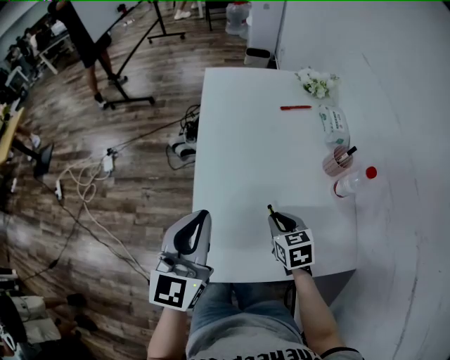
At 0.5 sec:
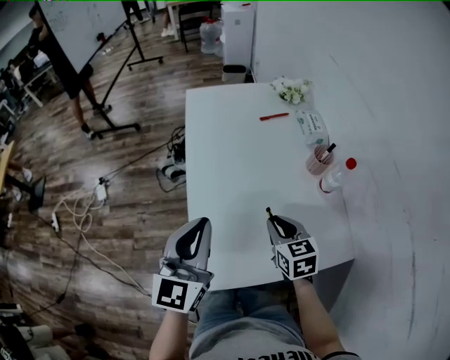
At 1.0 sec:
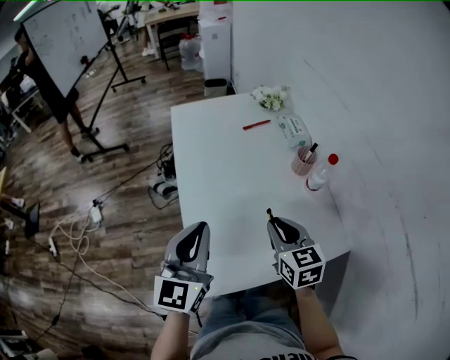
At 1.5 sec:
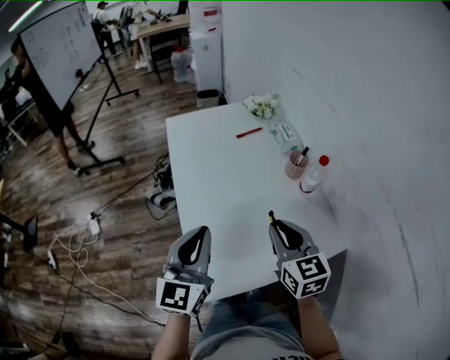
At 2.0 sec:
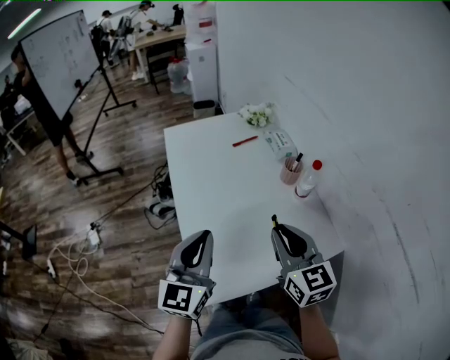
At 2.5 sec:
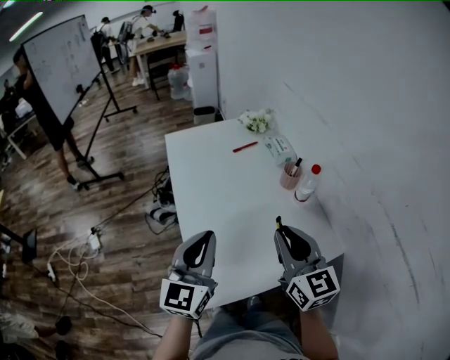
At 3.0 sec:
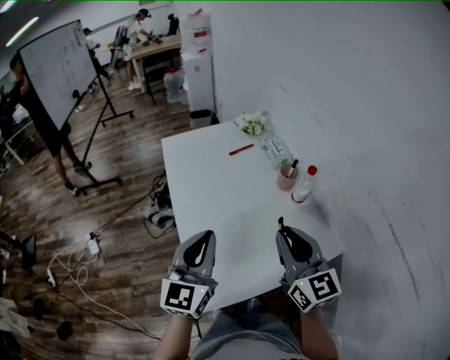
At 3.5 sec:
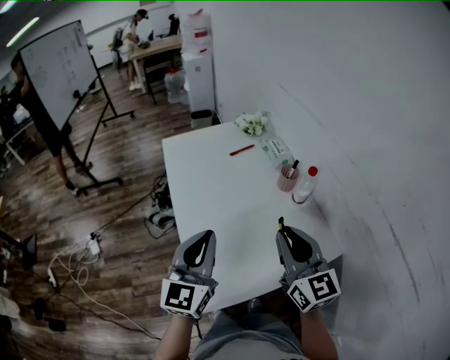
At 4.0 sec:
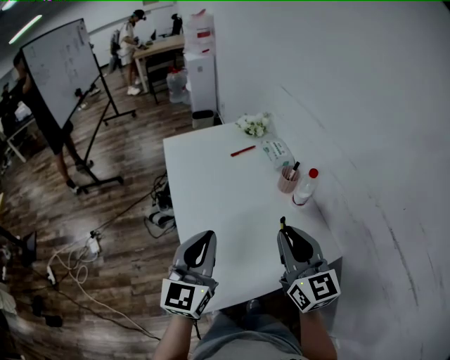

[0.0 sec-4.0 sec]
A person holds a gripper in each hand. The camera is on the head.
0.0 sec to 2.0 sec: The right gripper goes some 20 cm upward, and points its fingers some 40 degrees further upward.
2.0 sec to 4.0 sec: The grippers make only small movements.

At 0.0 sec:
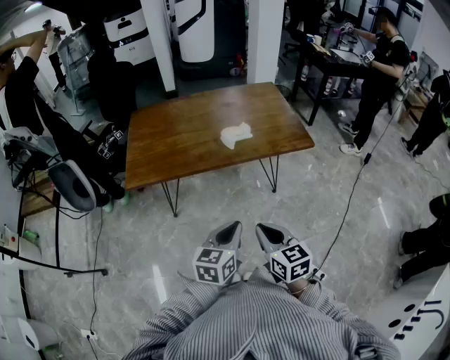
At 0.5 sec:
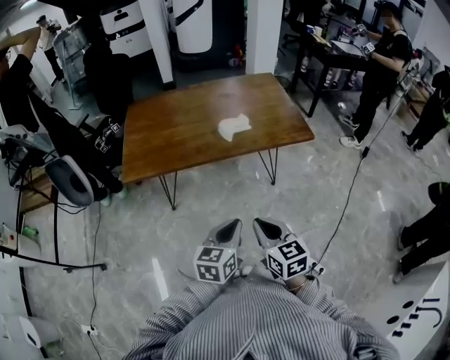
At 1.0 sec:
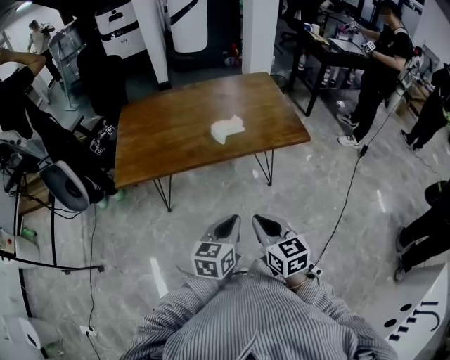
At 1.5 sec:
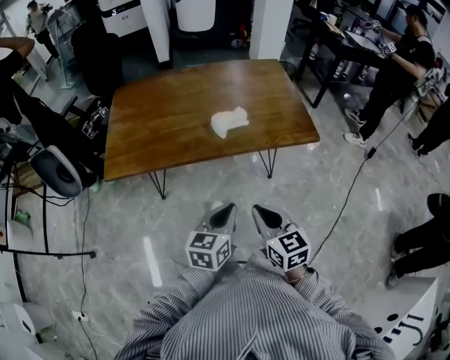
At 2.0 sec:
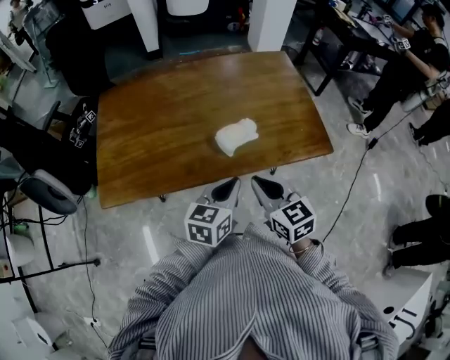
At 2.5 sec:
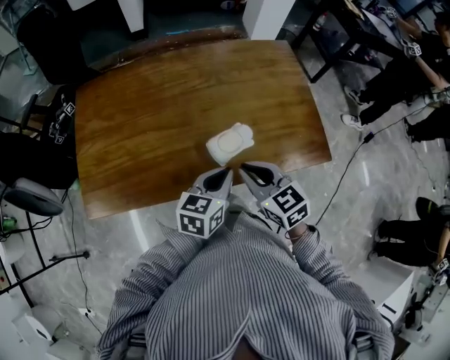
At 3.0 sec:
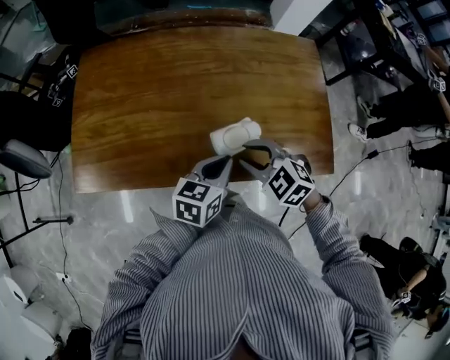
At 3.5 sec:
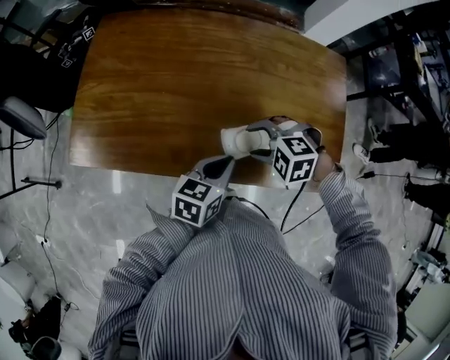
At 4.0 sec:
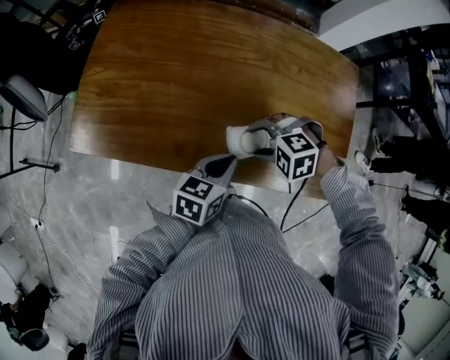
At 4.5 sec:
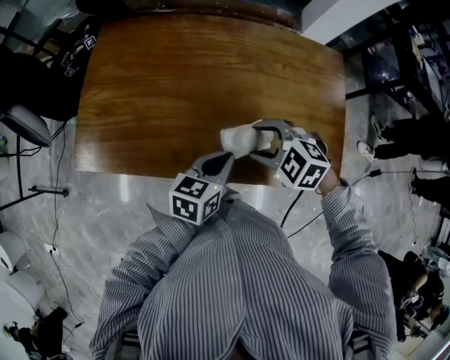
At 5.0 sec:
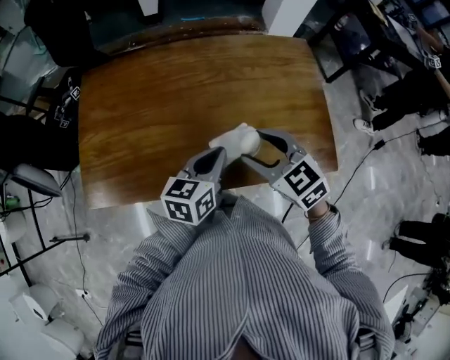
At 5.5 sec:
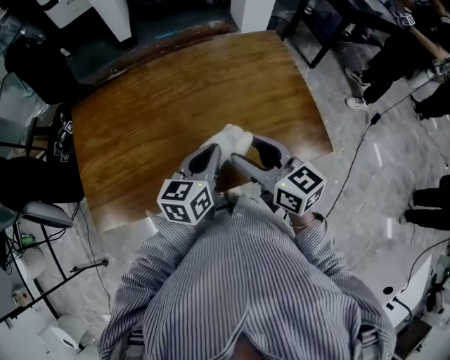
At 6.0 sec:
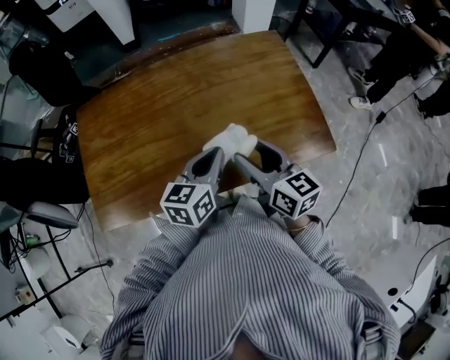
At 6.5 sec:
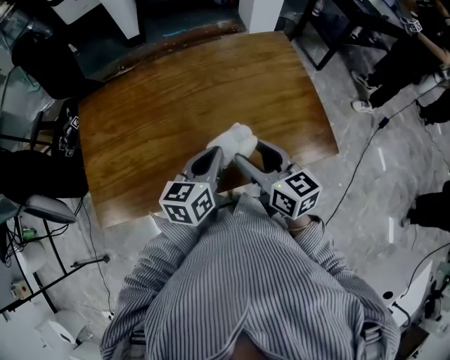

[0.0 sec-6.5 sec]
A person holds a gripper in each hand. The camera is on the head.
0.0 sec to 2.0 sec: The grippers both shift forward by approximately 30 cm.
2.0 sec to 4.5 sec: The left gripper ends up roughly 15 cm from where it was. The right gripper changes place by some 20 cm, tips its fingers downward by roughly 30 degrees, and opens its fingers.
4.5 sec to 6.5 sec: Both grippers move upward, roughly 5 cm. The right gripper tilts its fingers some 40 degrees upward.

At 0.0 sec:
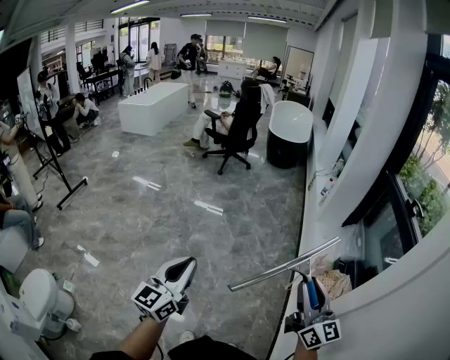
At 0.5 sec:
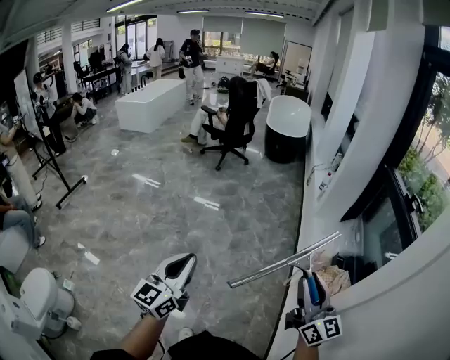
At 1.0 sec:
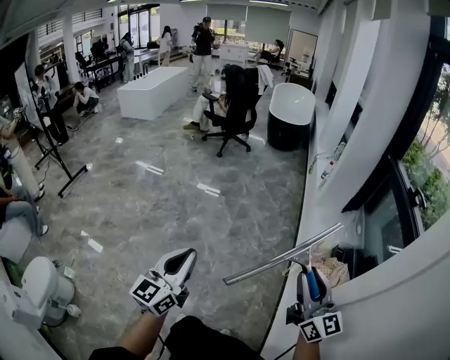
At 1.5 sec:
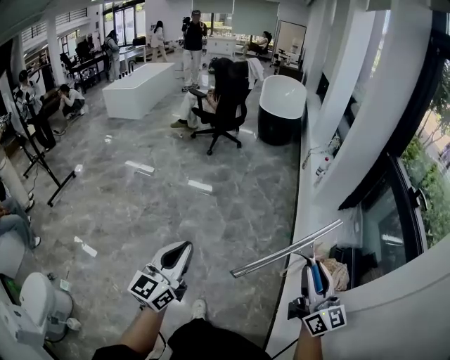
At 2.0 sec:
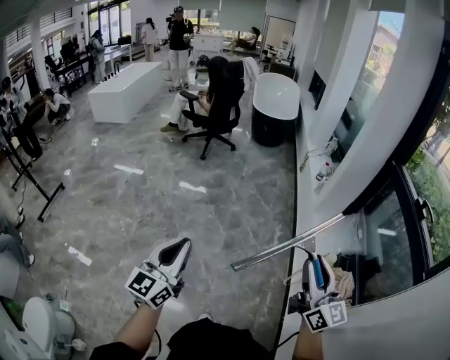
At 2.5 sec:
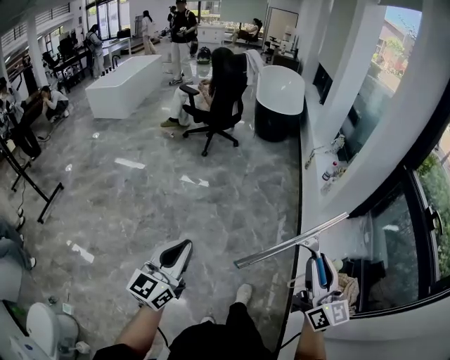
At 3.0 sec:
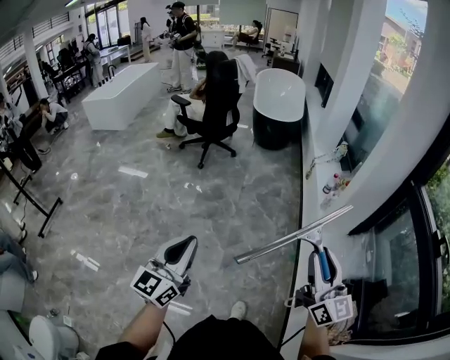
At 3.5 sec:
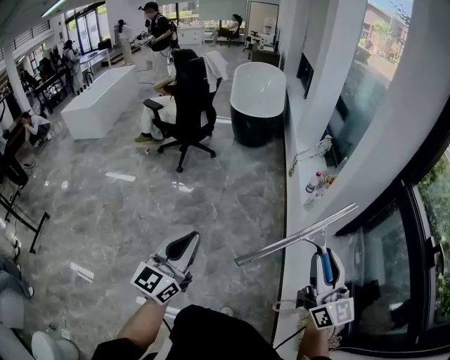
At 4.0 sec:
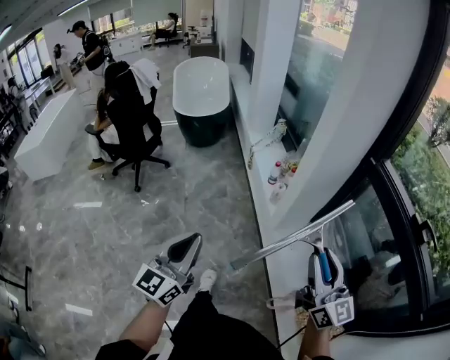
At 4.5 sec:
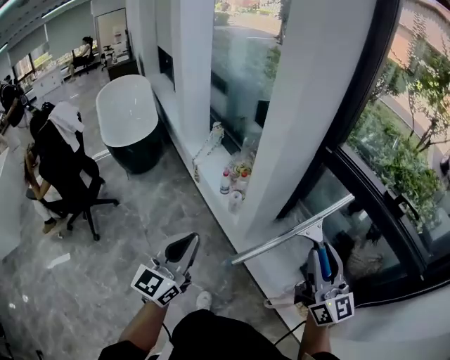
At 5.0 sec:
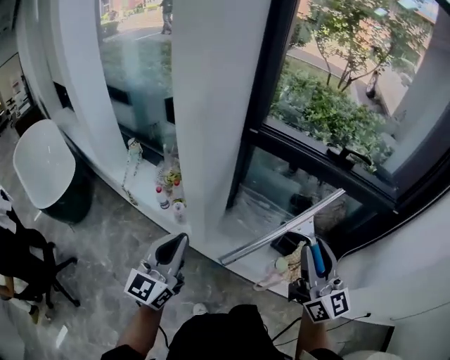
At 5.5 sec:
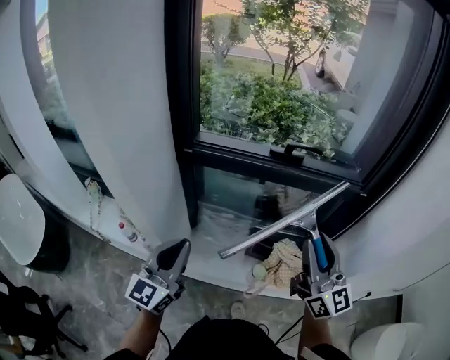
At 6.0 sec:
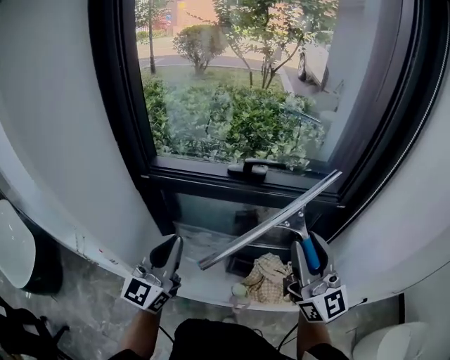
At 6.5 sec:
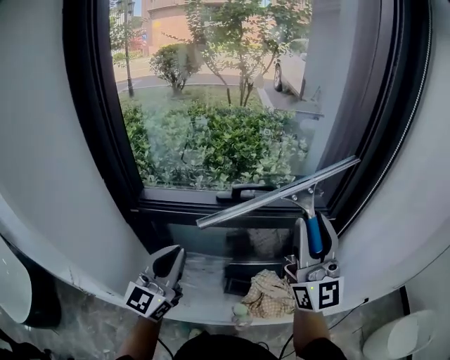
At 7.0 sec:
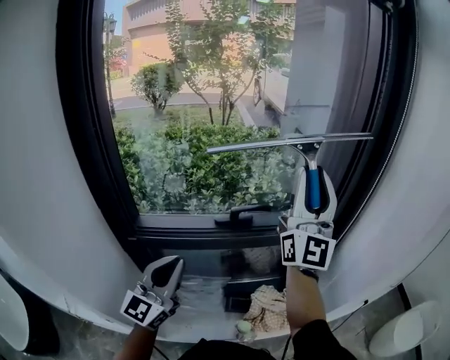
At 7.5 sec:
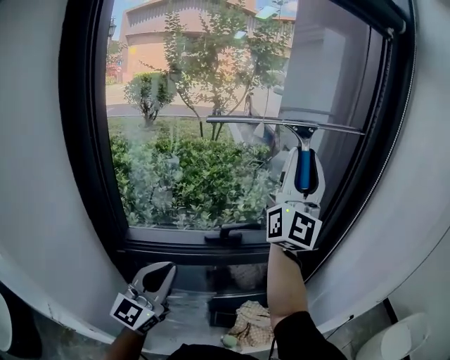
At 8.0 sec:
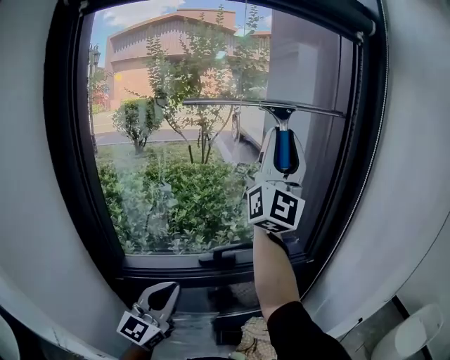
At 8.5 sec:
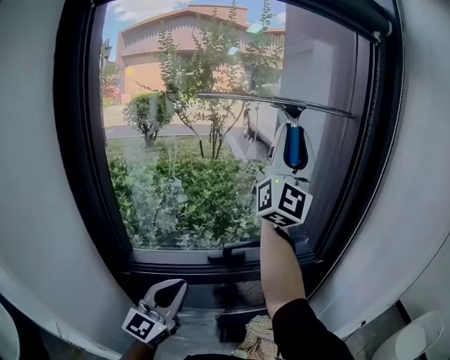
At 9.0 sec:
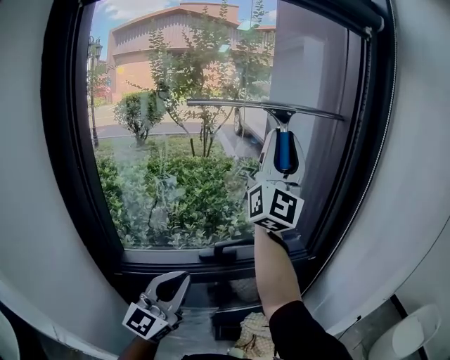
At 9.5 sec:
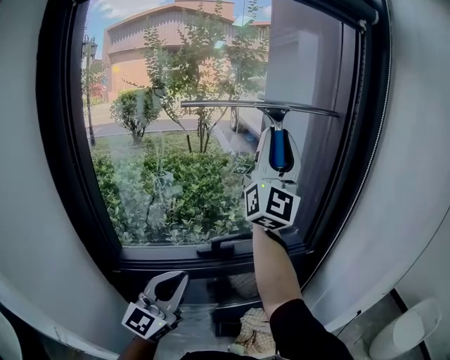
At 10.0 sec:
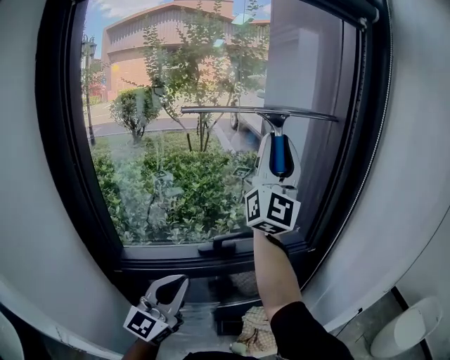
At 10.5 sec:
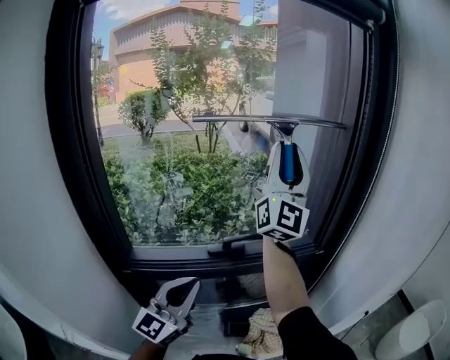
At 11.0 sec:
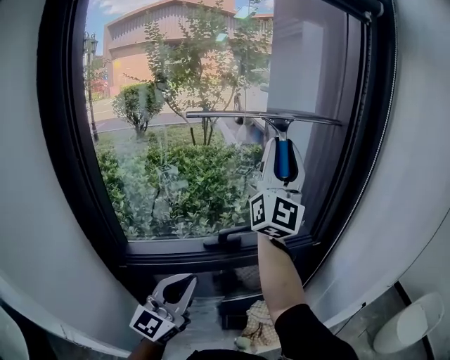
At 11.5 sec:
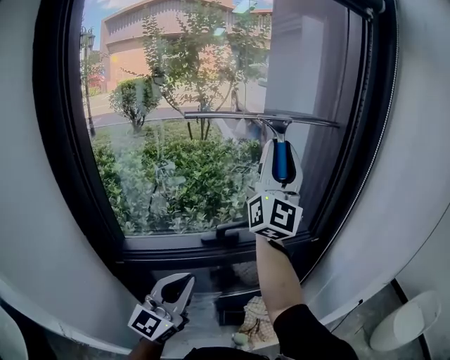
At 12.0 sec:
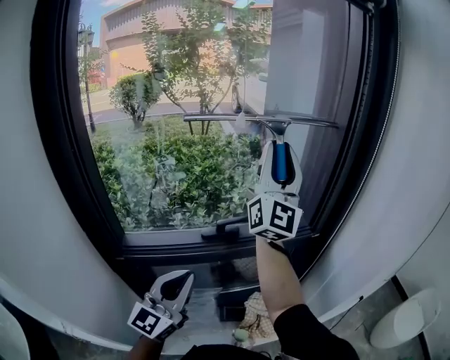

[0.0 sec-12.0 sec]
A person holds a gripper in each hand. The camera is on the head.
0.0 sec to 2.0 sec: The grippers both shift forward by roughly 20 cm.
2.0 sec to 4.0 sec: The two grippers travel together, forward and to the right, some 50 cm. The left gripper rotates about 20 degrees, while the right gripper changes its angle by about 20 degrees.
4.0 sec to 6.0 sec: The left gripper ends up roughly 50 cm from where it was, and changes its angle by some 70 degrees, while the right gripper moves roughly 30 cm, and changes its angle by roughly 70 degrees.
6.0 sec to 8.0 sec: The right gripper travels upward by about 30 cm, and tilts its fingers approximately 30 degrees upward, while the left gripper moves roughly 10 cm, and changes its angle by some 20 degrees.
8.0 sec to 10.0 sec: The right gripper shifts approximately 5 cm downward.
10.0 sec to 12.0 sec: The right gripper heads downward, covering approximately 5 cm.

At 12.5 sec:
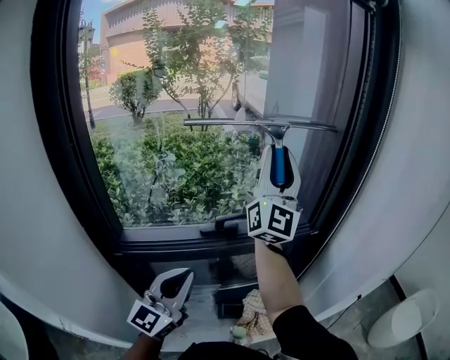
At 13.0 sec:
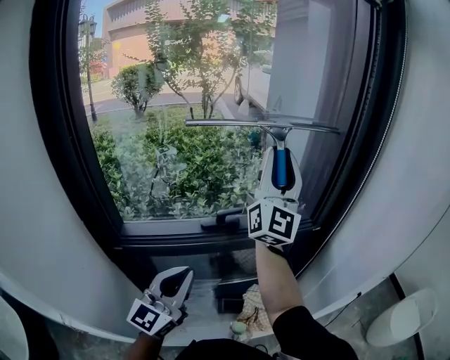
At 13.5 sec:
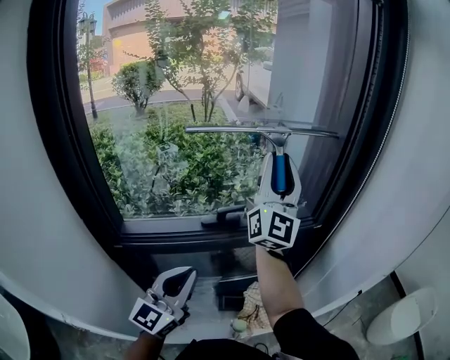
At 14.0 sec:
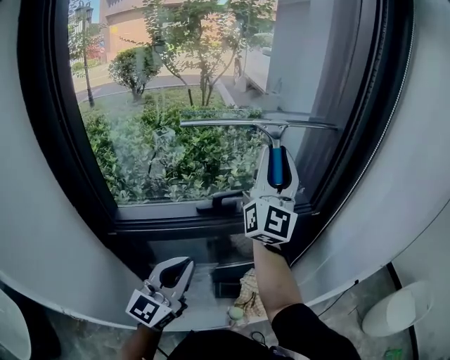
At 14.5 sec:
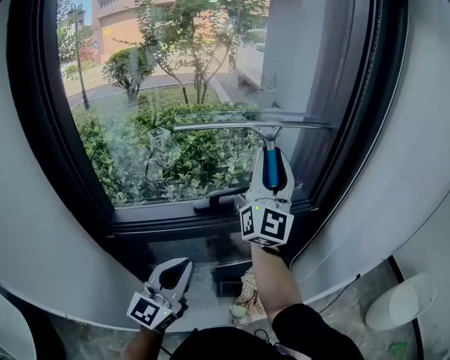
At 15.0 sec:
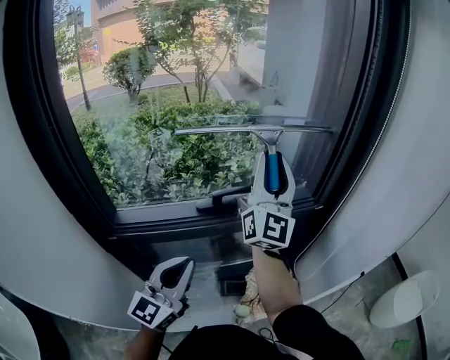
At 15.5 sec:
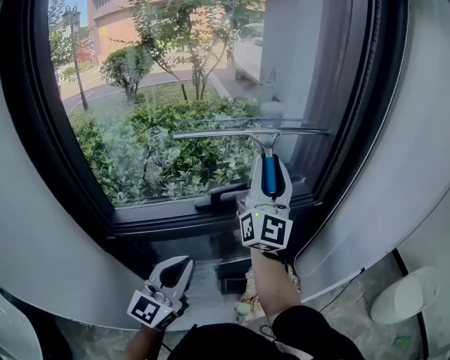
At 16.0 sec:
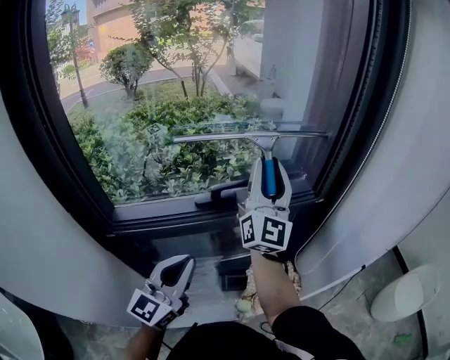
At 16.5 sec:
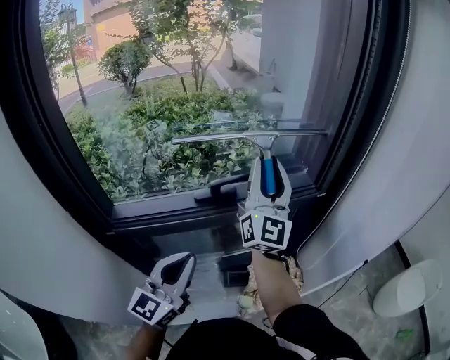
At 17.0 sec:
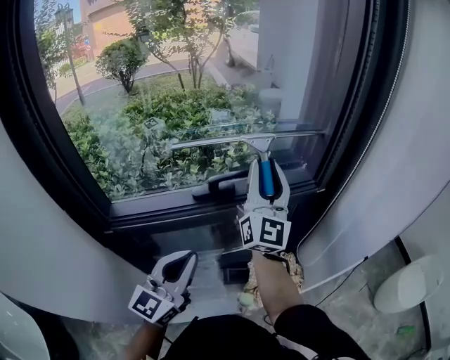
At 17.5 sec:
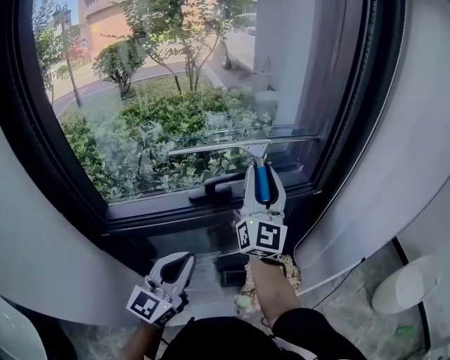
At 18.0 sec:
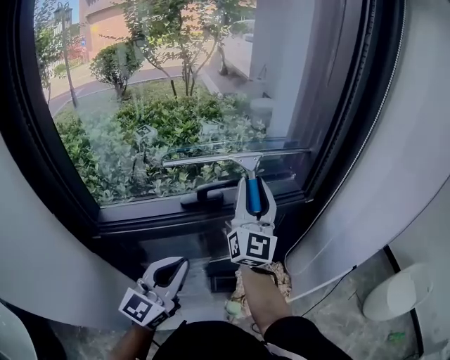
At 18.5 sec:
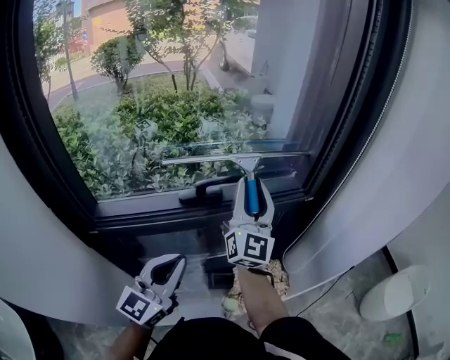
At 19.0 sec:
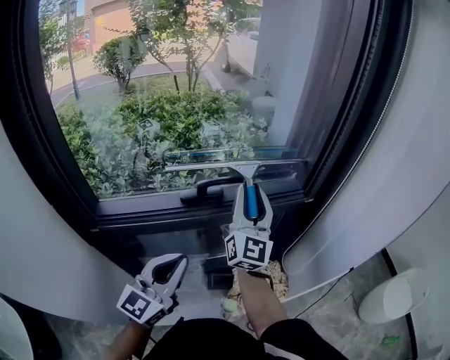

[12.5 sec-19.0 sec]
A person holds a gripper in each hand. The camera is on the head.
12.5 sec to 14.5 sec: The right gripper moves downward, approximately 10 cm.
14.5 sec to 17.0 sec: The right gripper goes roughly 10 cm downward.
17.0 sec to 19.0 sec: The right gripper travels downward by about 5 cm.
